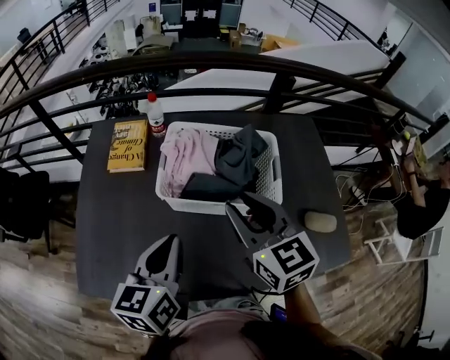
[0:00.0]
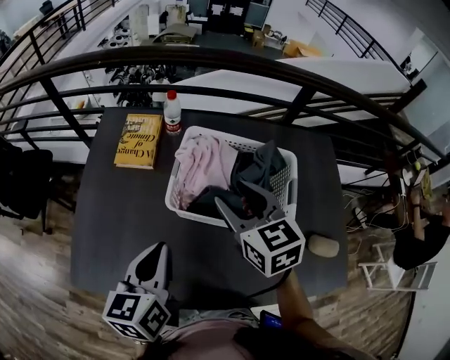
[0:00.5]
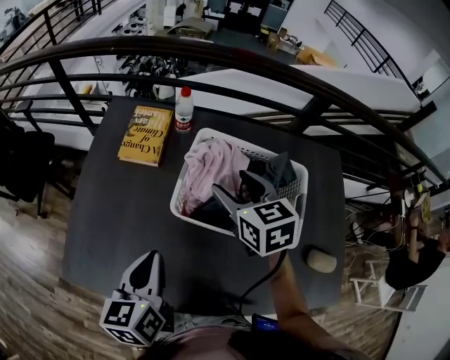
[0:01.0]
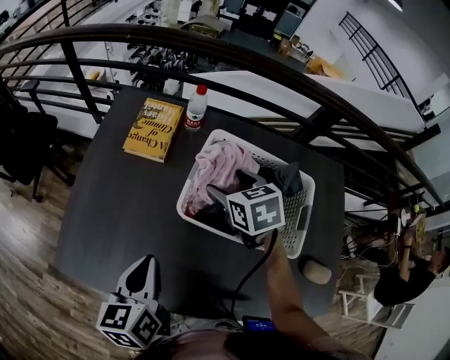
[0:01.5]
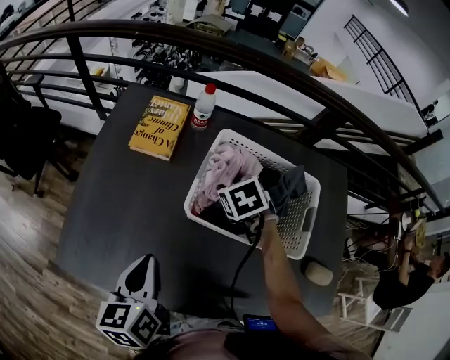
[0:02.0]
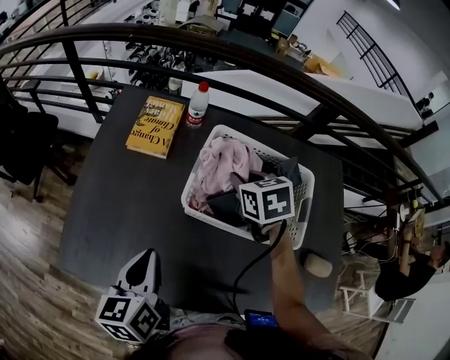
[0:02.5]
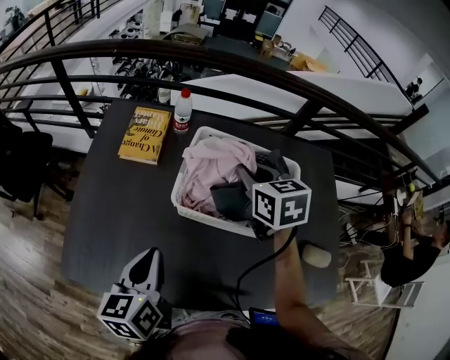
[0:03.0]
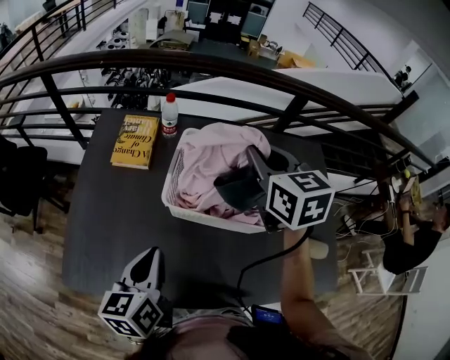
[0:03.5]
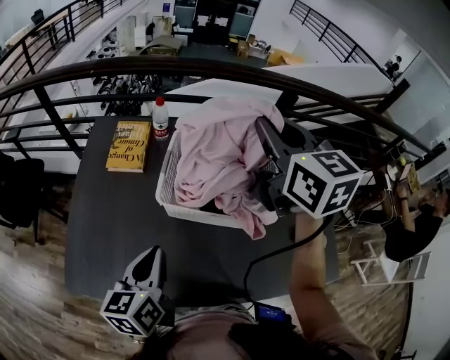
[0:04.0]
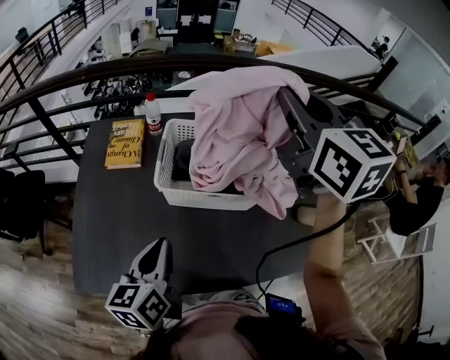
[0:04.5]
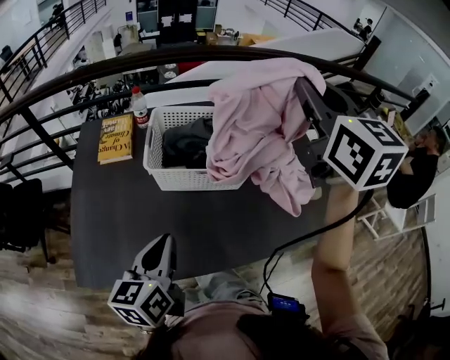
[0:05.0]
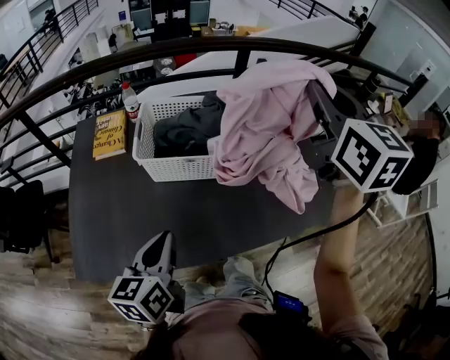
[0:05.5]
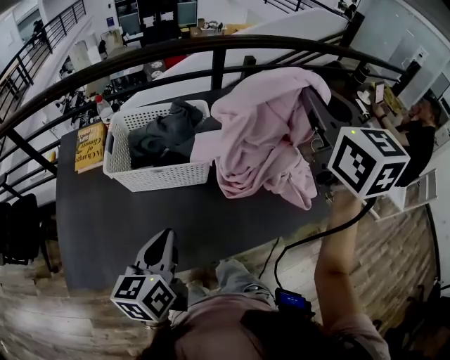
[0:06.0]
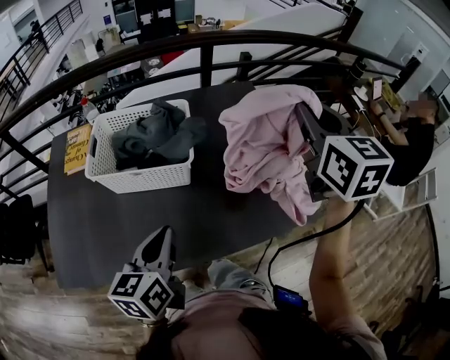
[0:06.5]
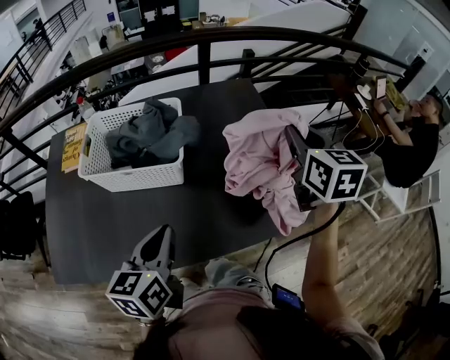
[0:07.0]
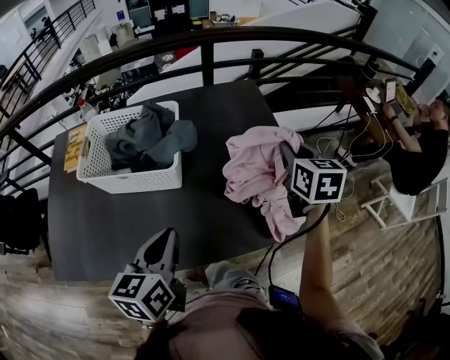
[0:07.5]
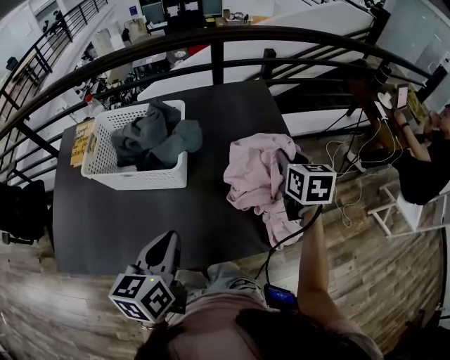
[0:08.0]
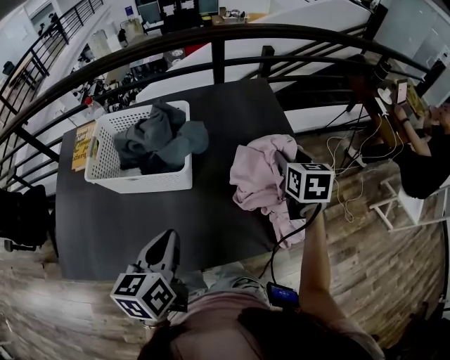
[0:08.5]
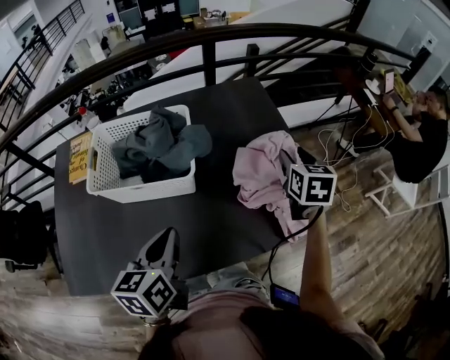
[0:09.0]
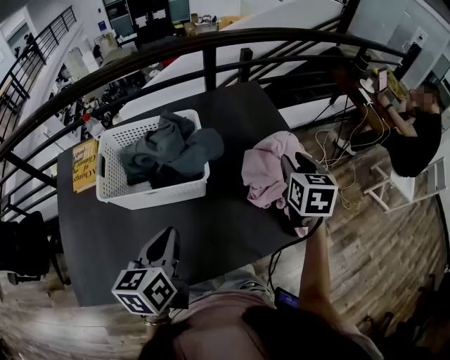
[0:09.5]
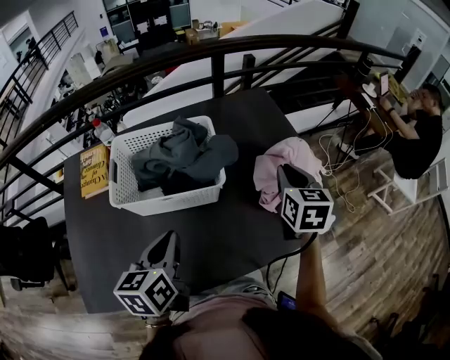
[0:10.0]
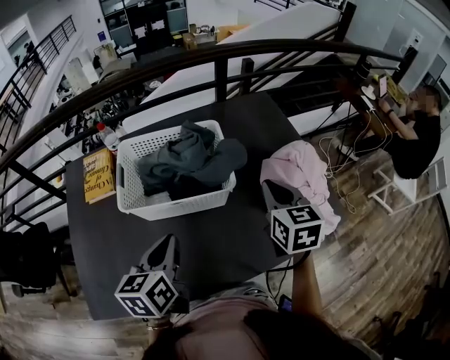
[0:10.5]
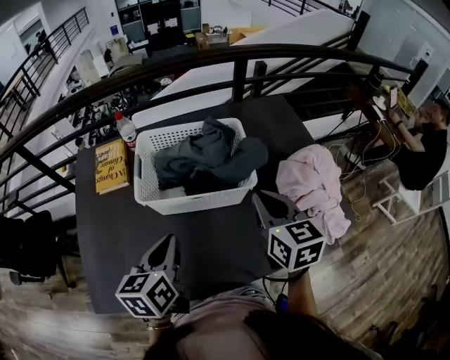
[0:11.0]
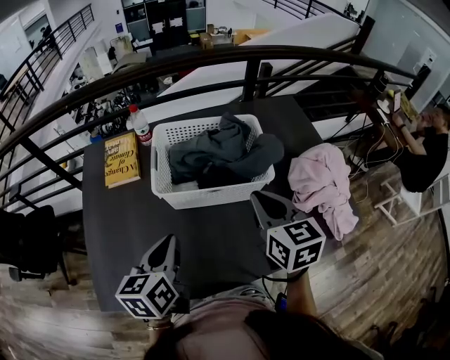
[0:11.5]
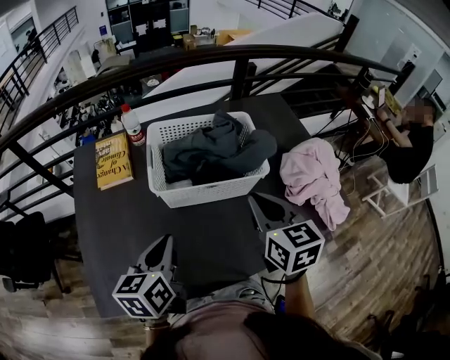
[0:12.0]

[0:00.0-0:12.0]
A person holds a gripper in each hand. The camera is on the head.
0:00.0 to 0:02.0: The right gripper heads downward and forward, covering roughly 25 cm, angles its fingers downward, by some 40 degrees, and opens, then closes once more. Meanwhile the left gripper goes approximately 10 cm to the left and downward, and rotates about 30 degrees.
0:02.0 to 0:04.0: The right gripper moves upward, about 35 cm, tips its fingers upward by approximately 50 degrees, and closes. Meanwhile the left gripper travels to the right and upward by approximately 10 cm.
0:04.0 to 0:06.0: The right gripper shifts roughly 30 cm to the right and backward, and turns by about 20 degrees; the left gripper moves to the right, some 15 cm.
0:06.0 to 0:08.0: The left gripper moves to the right, about 15 cm, while the right gripper is displaced downward and to the right by approximately 30 cm, and swivels about 30 degrees.
0:08.0 to 0:10.0: The right gripper heads to the left and backward, covering some 15 cm, and opens and closes again, while the left gripper moves to the left, approximately 15 cm.
0:10.0 to 0:12.0: The right gripper is displaced to the left and backward by some 25 cm; the left gripper travels to the left by approximately 15 cm.

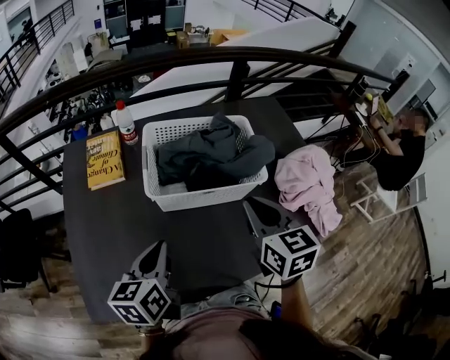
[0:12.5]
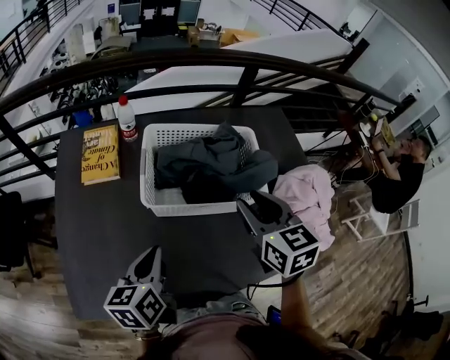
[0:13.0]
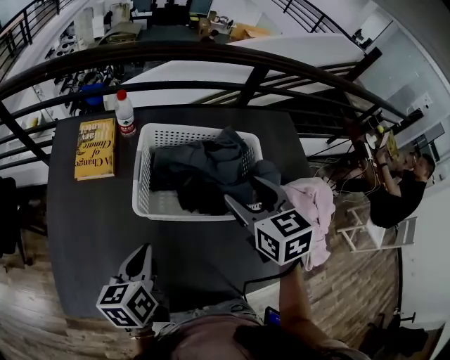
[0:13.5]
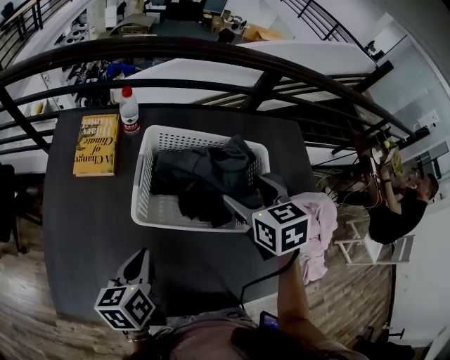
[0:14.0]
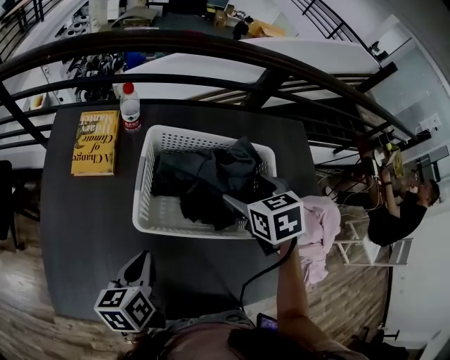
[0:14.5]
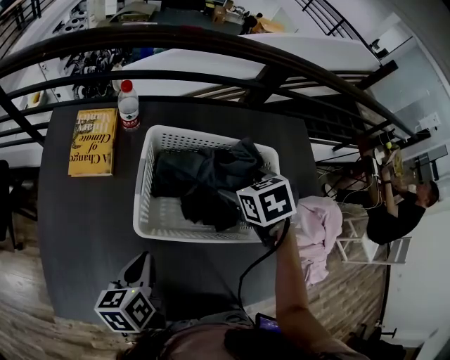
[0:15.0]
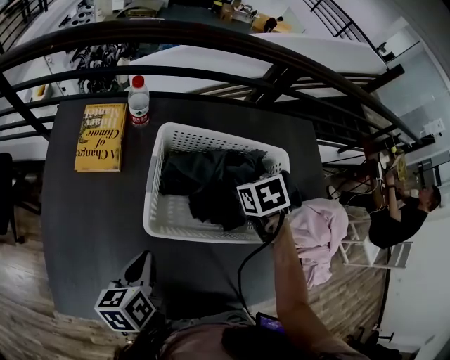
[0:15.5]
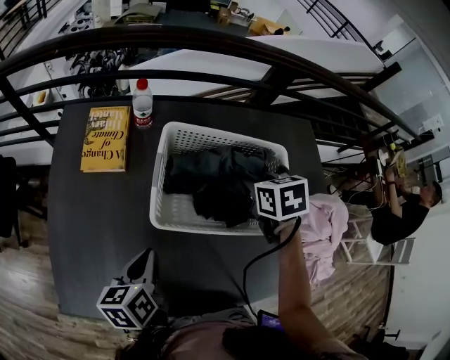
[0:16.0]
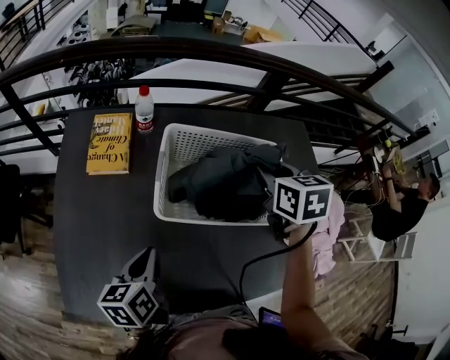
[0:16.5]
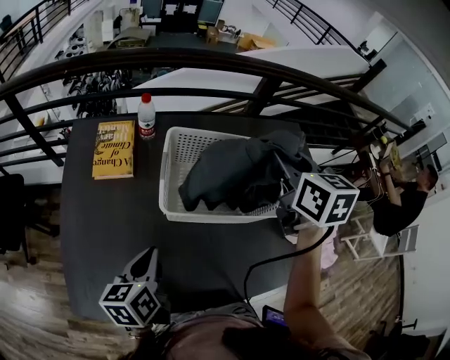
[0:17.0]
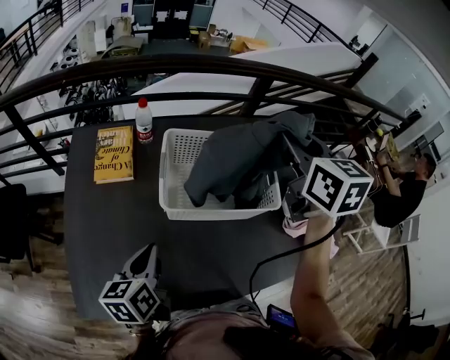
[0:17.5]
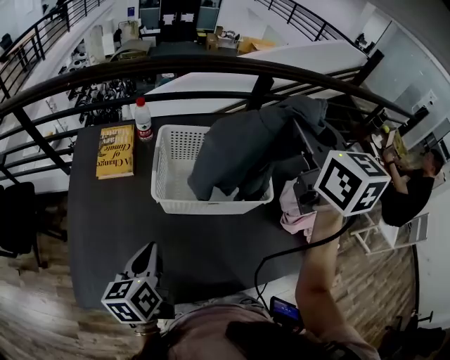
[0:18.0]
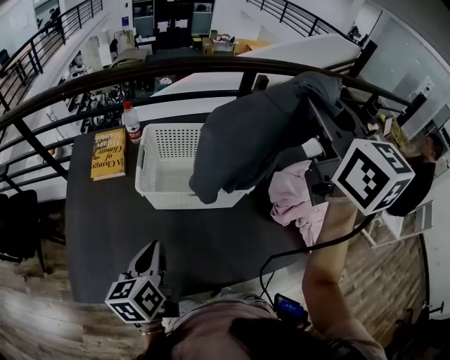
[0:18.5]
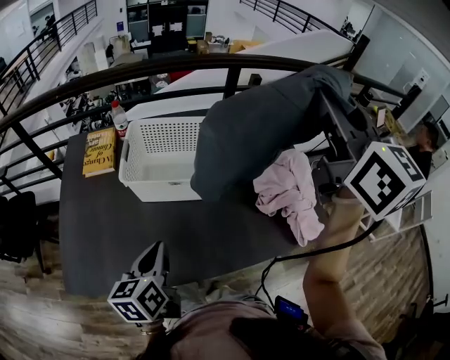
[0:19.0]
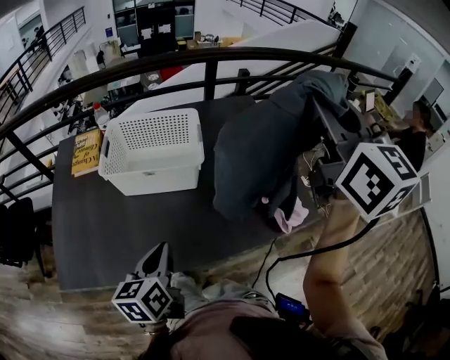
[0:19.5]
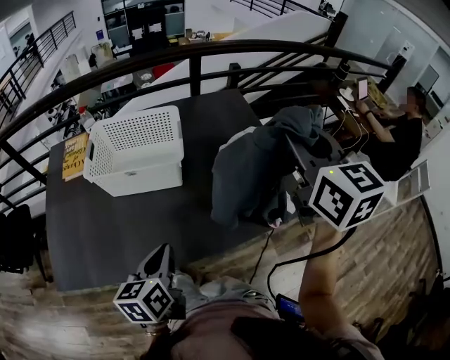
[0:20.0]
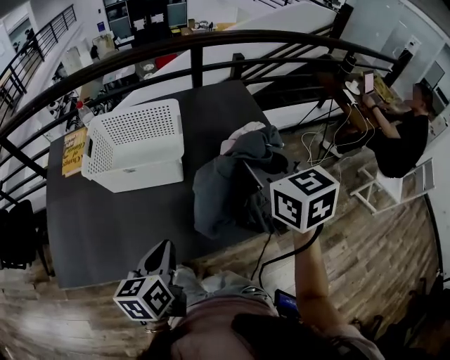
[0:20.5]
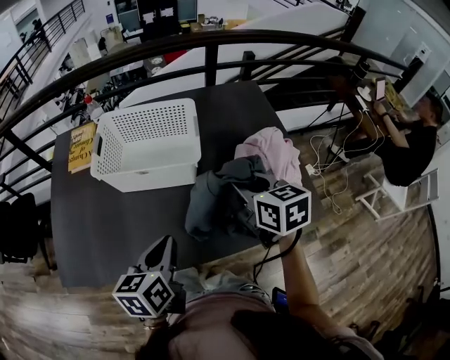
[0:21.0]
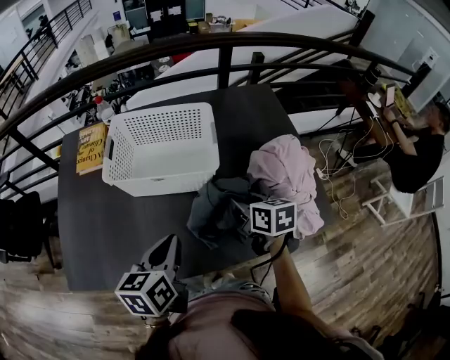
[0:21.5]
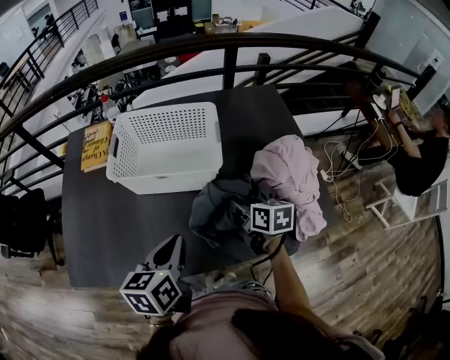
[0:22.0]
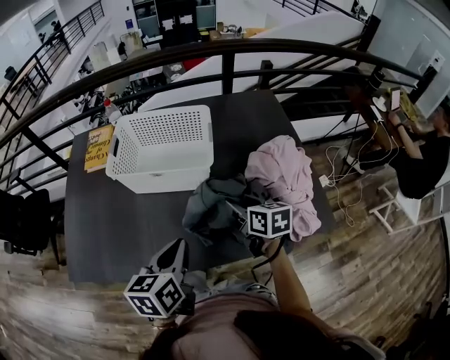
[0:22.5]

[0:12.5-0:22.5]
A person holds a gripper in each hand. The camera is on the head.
0:12.5 to 0:14.5: The left gripper heads downward and forward, covering some 10 cm, while the right gripper travels forward and downward by about 20 cm, turns by approximately 30 degrees, and opens up.
0:14.5 to 0:16.5: The right gripper travels upward by approximately 10 cm, and closes.
0:16.5 to 0:18.5: The right gripper moves upward and backward, some 30 cm, and angles its fingers upward, by some 40 degrees; the left gripper heads to the right, upward and backward, covering roughly 10 cm.
0:18.5 to 0:20.5: The right gripper moves downward, to the right and backward, some 25 cm, and changes its angle by about 20 degrees. Meanwhile the left gripper moves to the right, about 20 cm.
0:20.5 to 0:22.5: The right gripper moves downward, about 20 cm, and rotates approximately 30 degrees.

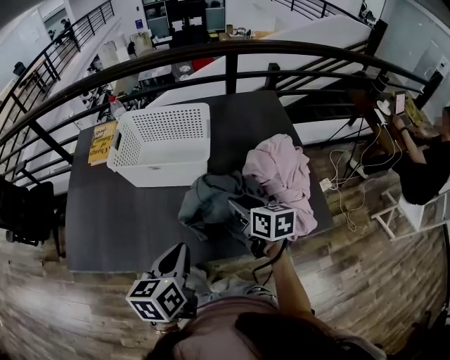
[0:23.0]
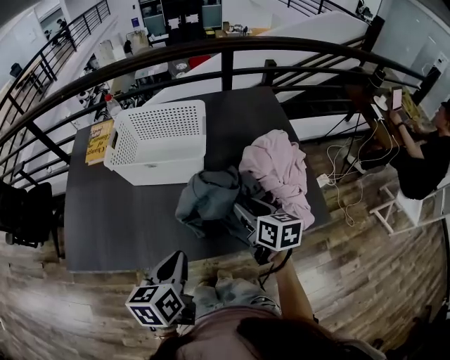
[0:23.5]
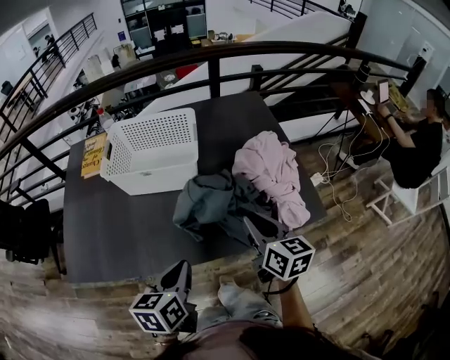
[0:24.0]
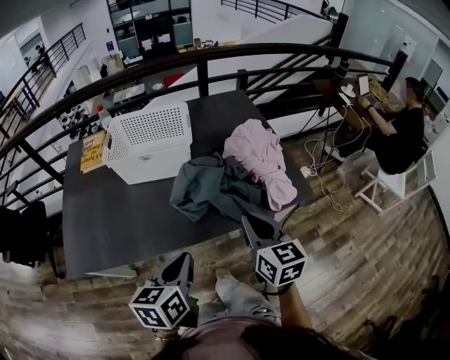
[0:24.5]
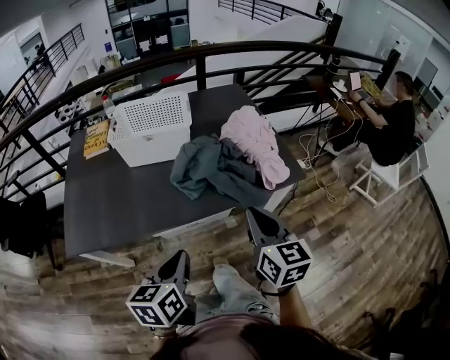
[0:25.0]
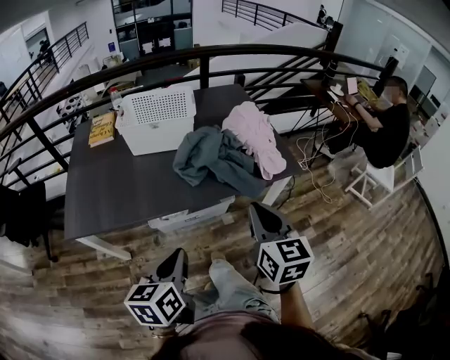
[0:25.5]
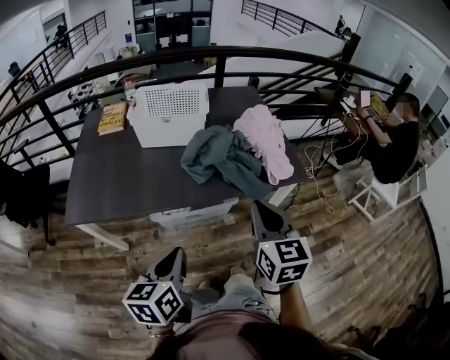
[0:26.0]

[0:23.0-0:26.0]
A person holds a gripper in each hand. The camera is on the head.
0:23.0 to 0:24.5: The left gripper goes approximately 10 cm backward. Meanwhile the right gripper travels backward and upward by approximately 20 cm, swivels some 30 degrees, and closes.
0:24.5 to 0:26.0: Both grippers move backward, about 15 cm.

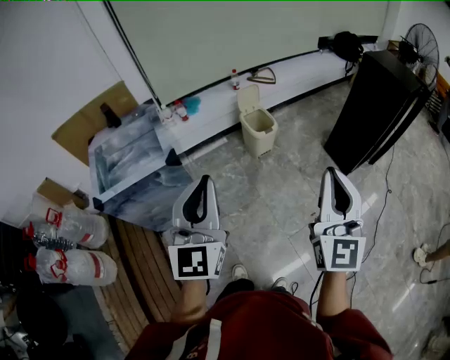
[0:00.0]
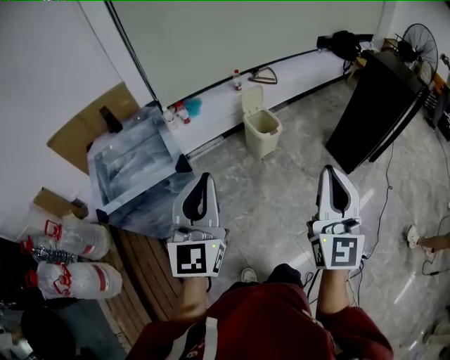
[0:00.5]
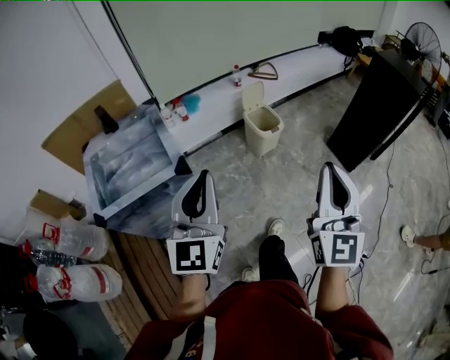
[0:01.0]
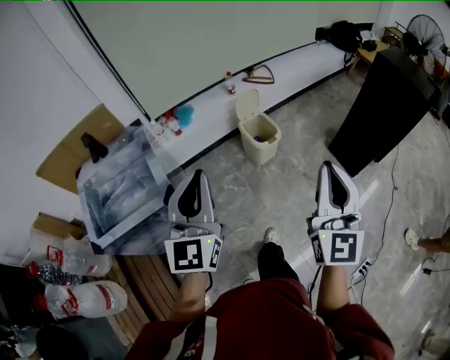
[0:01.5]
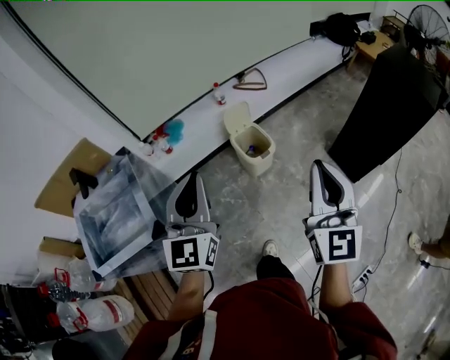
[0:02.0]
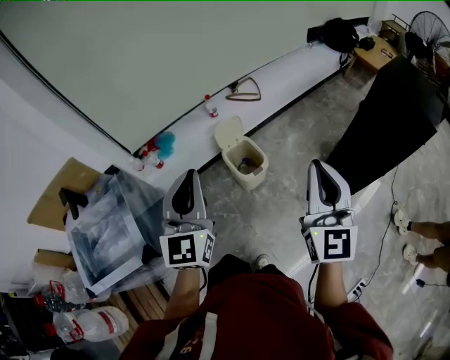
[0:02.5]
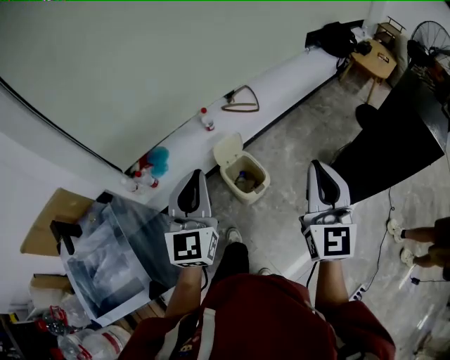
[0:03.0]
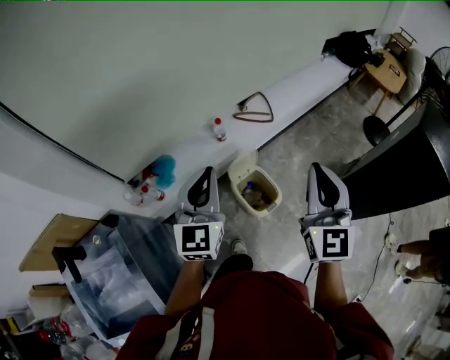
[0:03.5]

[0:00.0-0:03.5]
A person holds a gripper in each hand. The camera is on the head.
0:00.0 to 0:02.0: The two grippers go some 35 cm forward.
0:02.0 to 0:03.5: The grippers both shift forward by roughly 35 cm.
